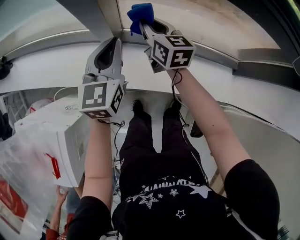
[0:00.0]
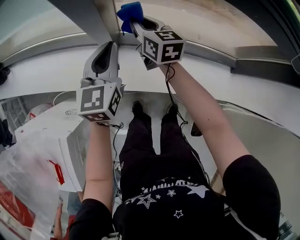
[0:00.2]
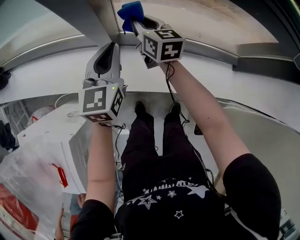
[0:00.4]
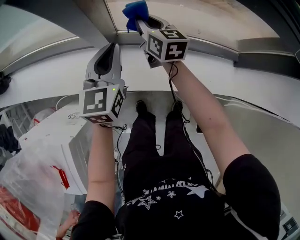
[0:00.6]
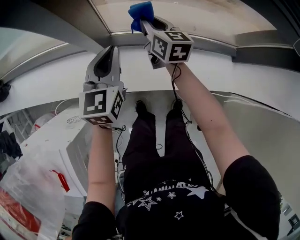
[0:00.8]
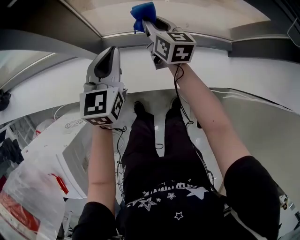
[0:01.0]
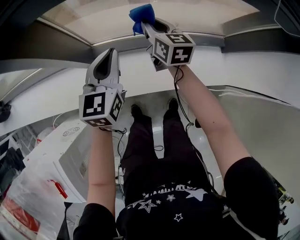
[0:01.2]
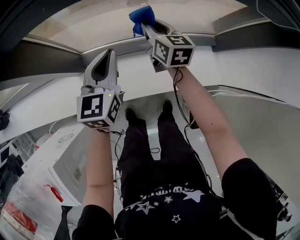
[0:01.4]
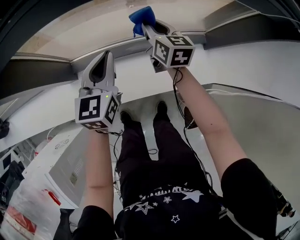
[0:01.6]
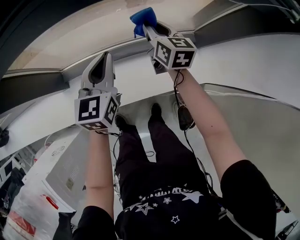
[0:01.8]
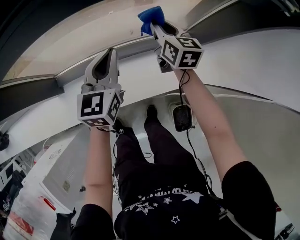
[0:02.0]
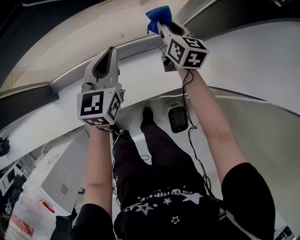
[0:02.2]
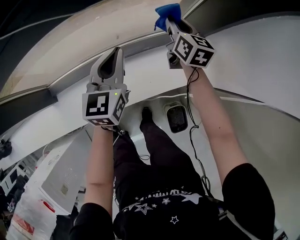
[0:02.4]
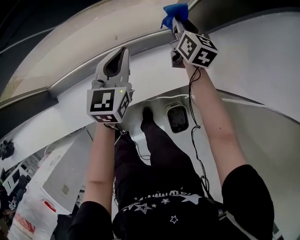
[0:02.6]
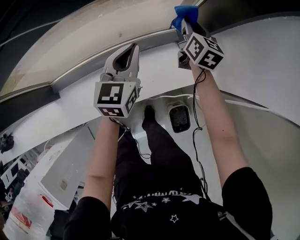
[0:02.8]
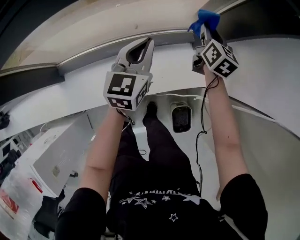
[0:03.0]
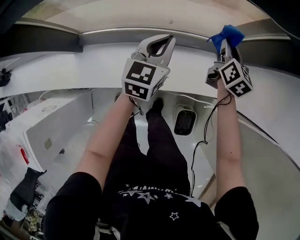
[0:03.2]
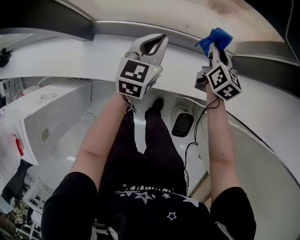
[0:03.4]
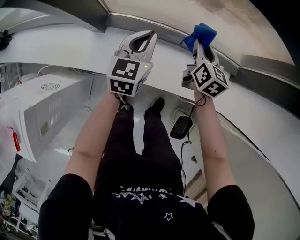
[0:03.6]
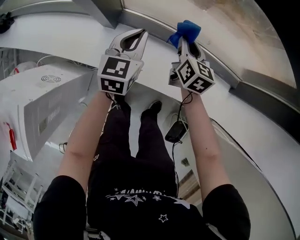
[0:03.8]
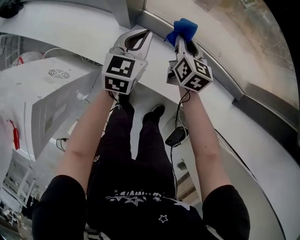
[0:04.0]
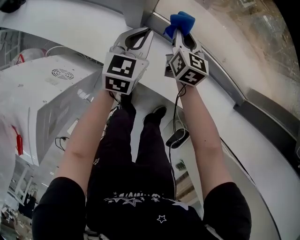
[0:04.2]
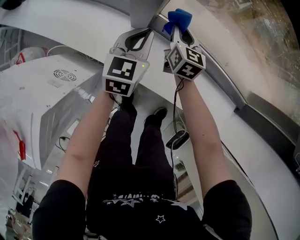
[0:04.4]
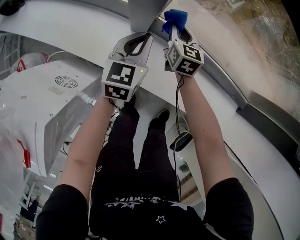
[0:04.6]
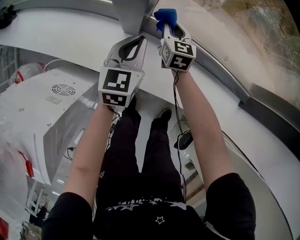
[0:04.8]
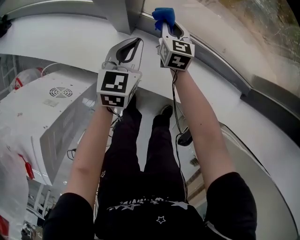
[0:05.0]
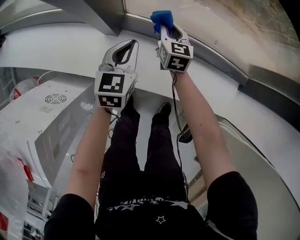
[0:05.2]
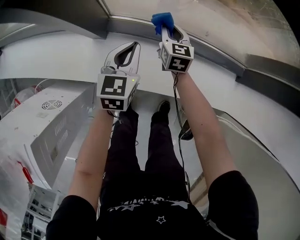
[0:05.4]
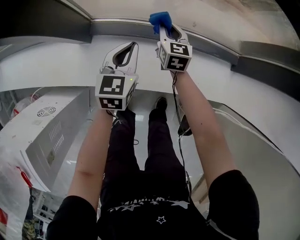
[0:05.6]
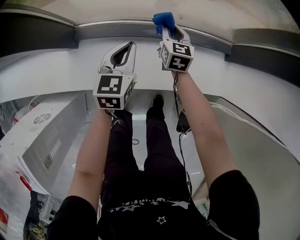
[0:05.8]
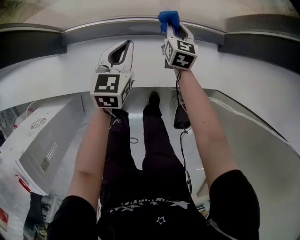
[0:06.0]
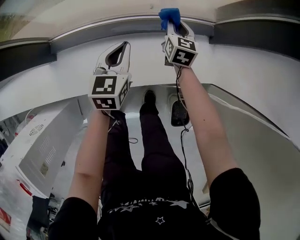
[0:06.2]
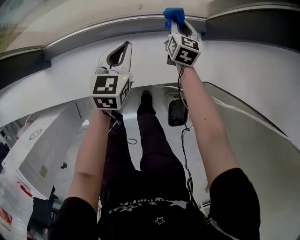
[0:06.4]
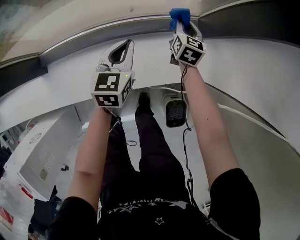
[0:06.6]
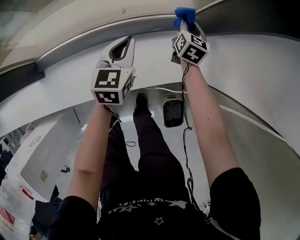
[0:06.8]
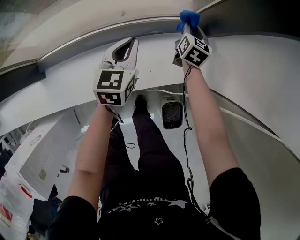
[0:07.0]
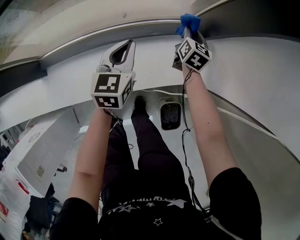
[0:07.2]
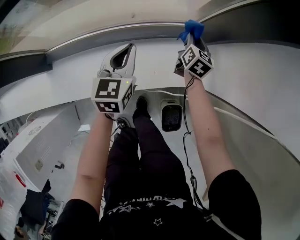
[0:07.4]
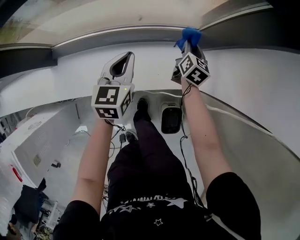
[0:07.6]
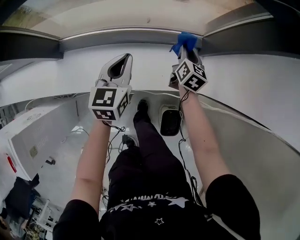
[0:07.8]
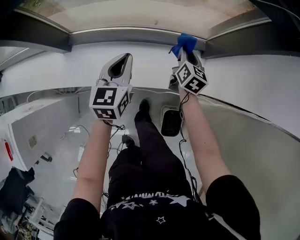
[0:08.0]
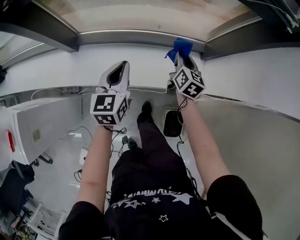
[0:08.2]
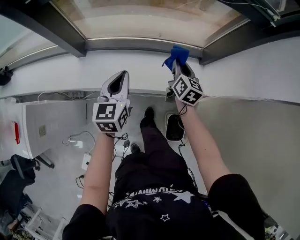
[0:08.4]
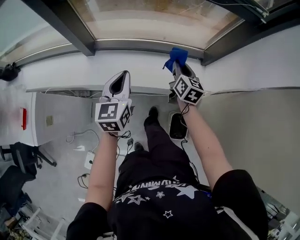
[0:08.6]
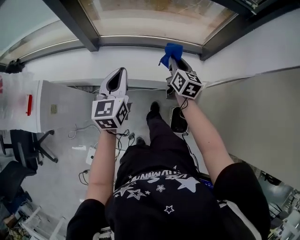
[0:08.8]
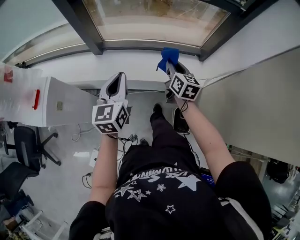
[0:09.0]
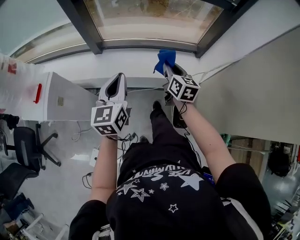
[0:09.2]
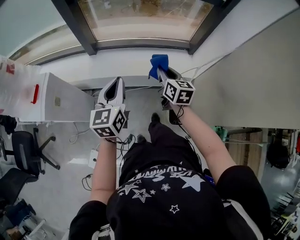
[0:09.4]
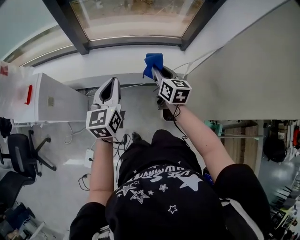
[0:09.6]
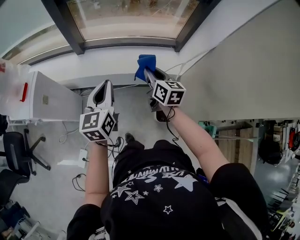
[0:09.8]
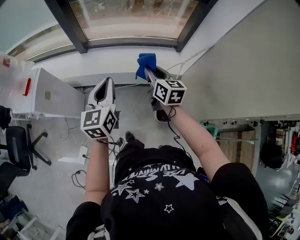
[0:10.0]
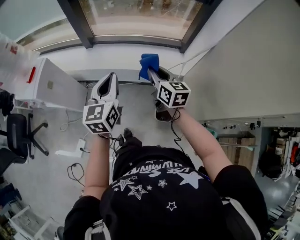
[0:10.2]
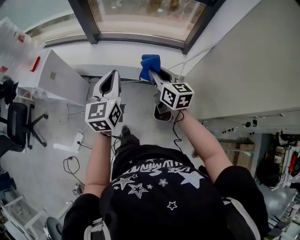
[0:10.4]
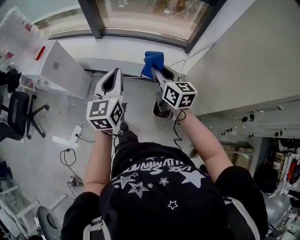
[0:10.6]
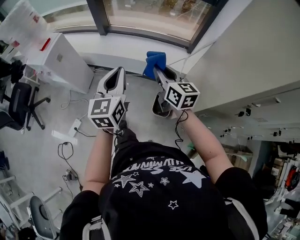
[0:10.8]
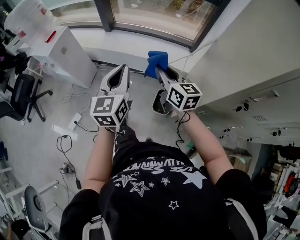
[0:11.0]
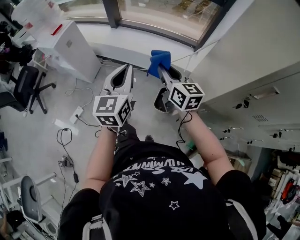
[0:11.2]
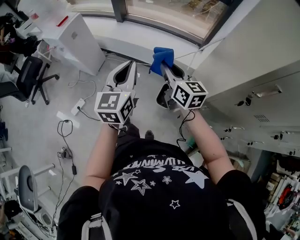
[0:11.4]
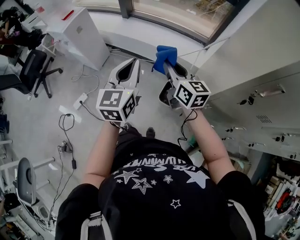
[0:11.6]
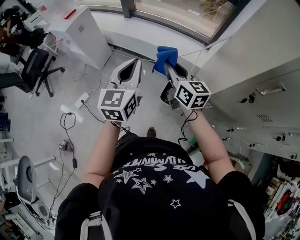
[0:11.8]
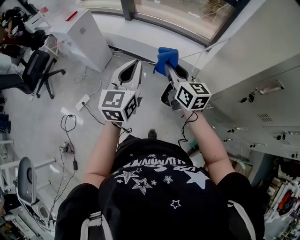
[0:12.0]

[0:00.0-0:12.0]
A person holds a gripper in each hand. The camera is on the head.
0:00.0 to 0:01.6: Both grippers move to the right, roughly 30 cm. The right gripper turns by approximately 20 degrees.
0:01.6 to 0:03.0: The grippers both shift to the right by roughly 30 cm. The right gripper swivels roughly 20 degrees.
0:03.0 to 0:04.4: The two grippers travel together, some 60 cm. The right gripper swivels roughly 40 degrees, while the left gripper changes its angle by approximately 30 degrees.
0:04.4 to 0:06.0: The left gripper moves roughly 35 cm, and changes its angle by approximately 20 degrees. The right gripper ends up about 40 cm from where it was, and swivels some 30 degrees.
0:06.0 to 0:07.6: The left gripper is displaced to the right and upward by roughly 15 cm; the right gripper heads to the right, covering approximately 25 cm, and turns by approximately 20 degrees.
0:07.6 to 0:09.0: The two grippers go about 50 cm backward, upward and to the left. The right gripper turns by approximately 30 degrees. Meanwhile the left gripper turns by about 20 degrees.
0:09.0 to 0:10.4: The right gripper moves backward, approximately 25 cm, and turns by approximately 20 degrees. Meanwhile the left gripper moves backward and to the right, approximately 20 cm.
0:10.4 to 0:12.0: Both grippers travel together backward, about 20 cm.

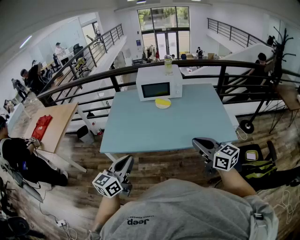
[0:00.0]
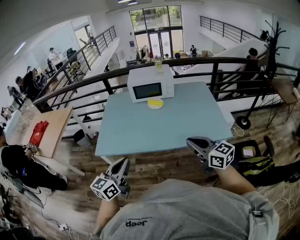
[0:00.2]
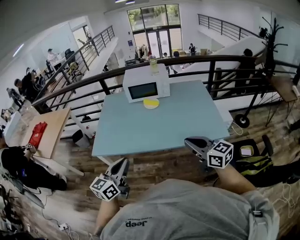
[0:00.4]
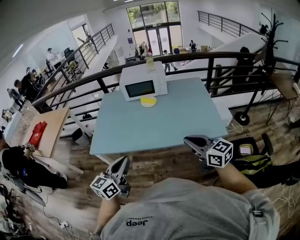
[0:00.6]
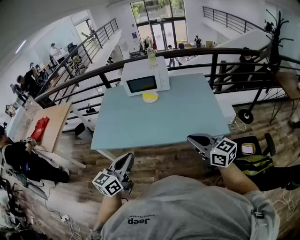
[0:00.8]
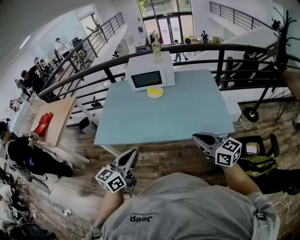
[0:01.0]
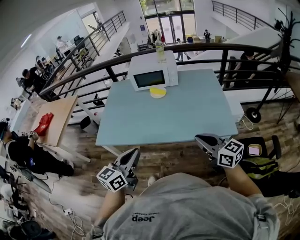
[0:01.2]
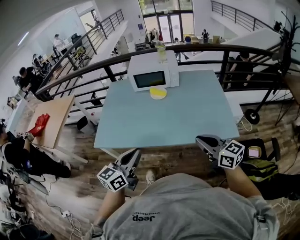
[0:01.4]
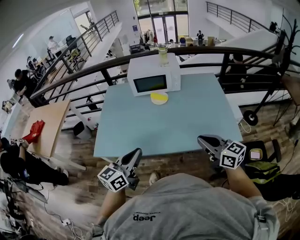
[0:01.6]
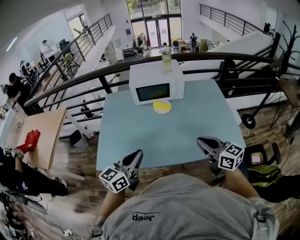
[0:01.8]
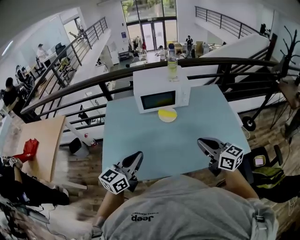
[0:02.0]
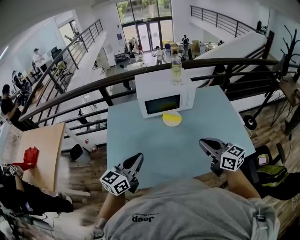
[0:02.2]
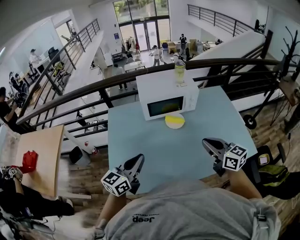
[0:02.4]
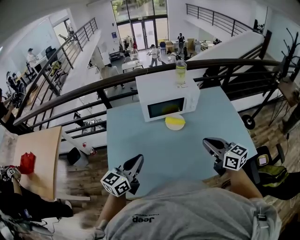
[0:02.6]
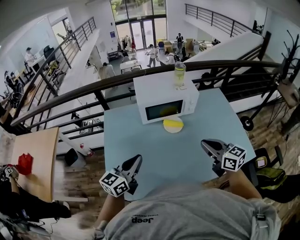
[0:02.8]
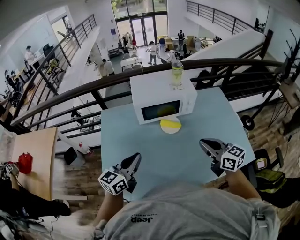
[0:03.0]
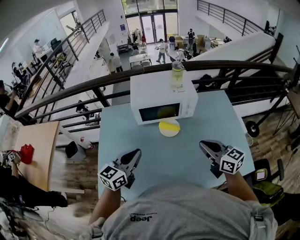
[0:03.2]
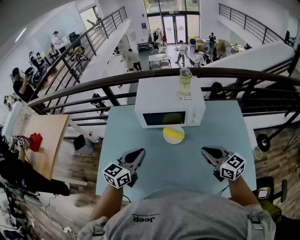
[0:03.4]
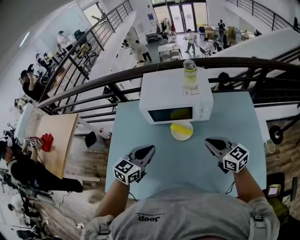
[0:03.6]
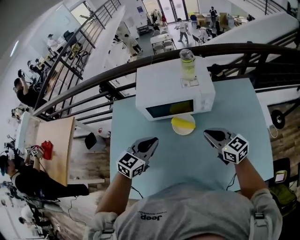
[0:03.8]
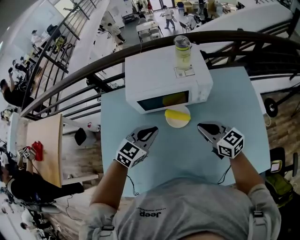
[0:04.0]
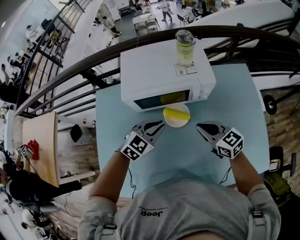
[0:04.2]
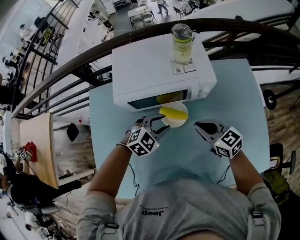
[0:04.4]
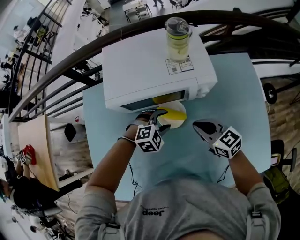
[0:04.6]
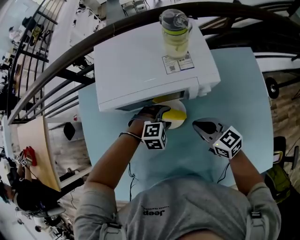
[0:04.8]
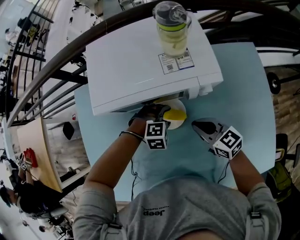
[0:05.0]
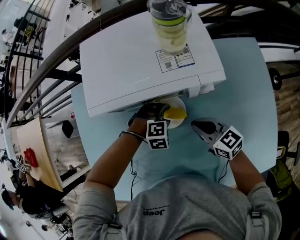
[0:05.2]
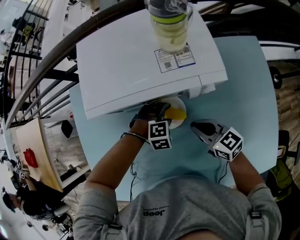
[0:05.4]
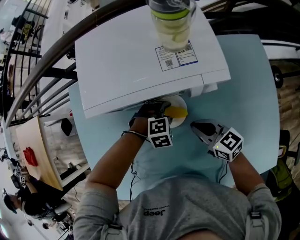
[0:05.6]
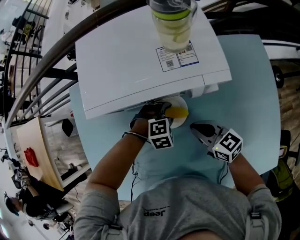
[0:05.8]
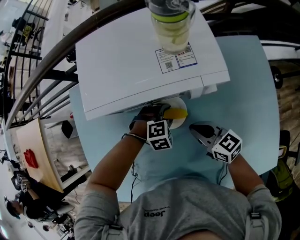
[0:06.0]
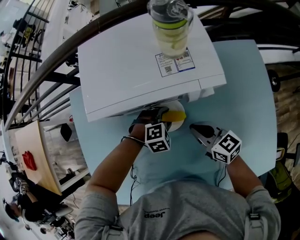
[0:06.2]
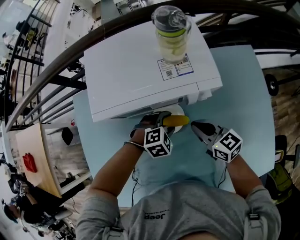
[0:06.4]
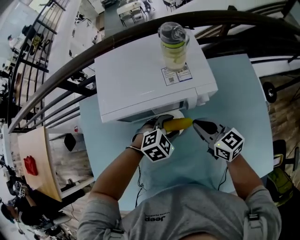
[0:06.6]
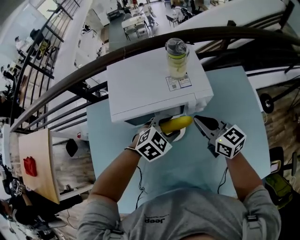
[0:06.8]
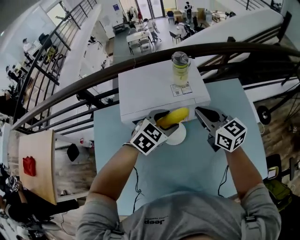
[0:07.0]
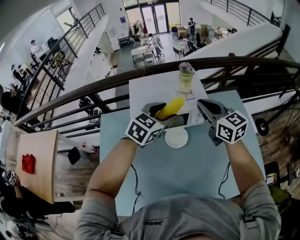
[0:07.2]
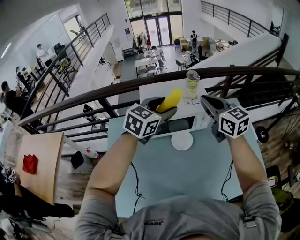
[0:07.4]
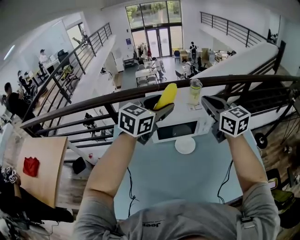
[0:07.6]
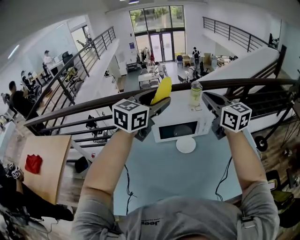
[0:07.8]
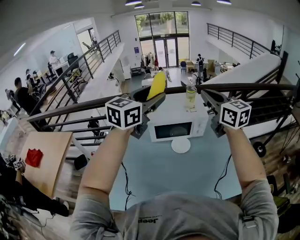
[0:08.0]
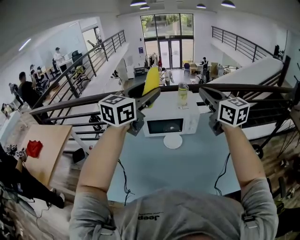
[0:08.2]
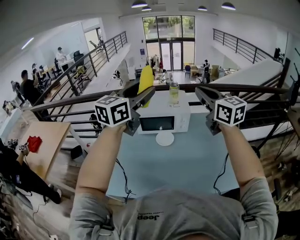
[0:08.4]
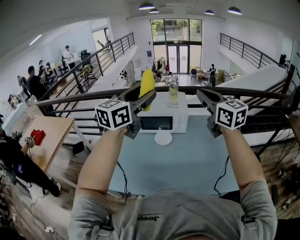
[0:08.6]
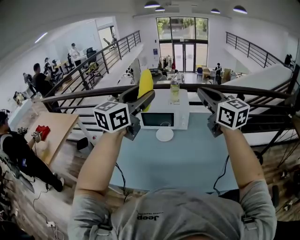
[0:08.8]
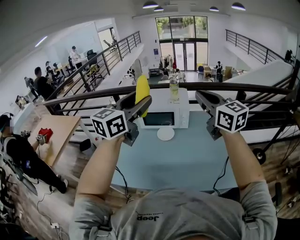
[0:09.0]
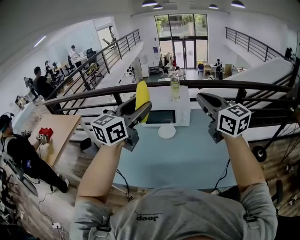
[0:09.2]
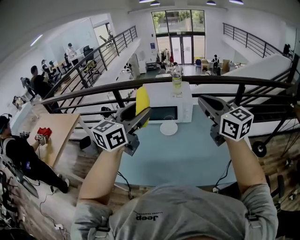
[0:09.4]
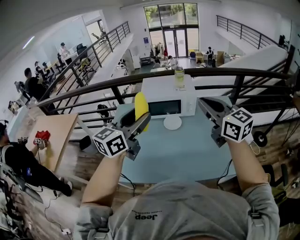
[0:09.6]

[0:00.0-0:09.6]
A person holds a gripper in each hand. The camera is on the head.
0:00.0 to 0:01.6: The two grippers go about 15 cm forward and to the right.
0:01.6 to 0:03.2: The left gripper moves forward and to the left, approximately 35 cm. The right gripper shifts some 30 cm forward.
0:03.2 to 0:04.8: The right gripper shifts approximately 30 cm downward and forward, while the left gripper goes about 40 cm downward, forward and to the right, angles its fingers downward, by roughly 50 degrees, and opens up.
0:04.8 to 0:06.4: The grippers move only a little.
0:06.4 to 0:08.0: The two grippers go approximately 50 cm upward. The right gripper swivels roughly 40 degrees; the left gripper tips its fingers upward by some 60 degrees.
0:08.0 to 0:09.6: The two grippers go about 20 cm backward.

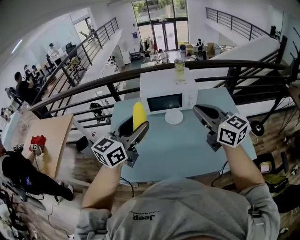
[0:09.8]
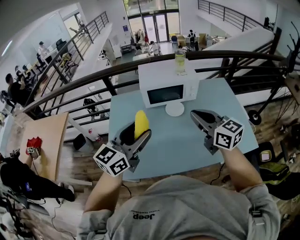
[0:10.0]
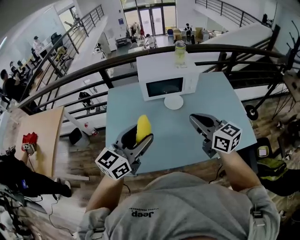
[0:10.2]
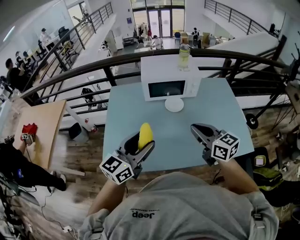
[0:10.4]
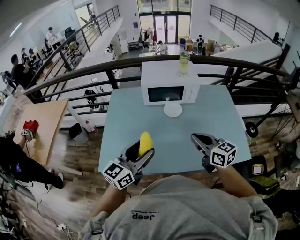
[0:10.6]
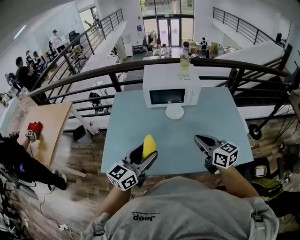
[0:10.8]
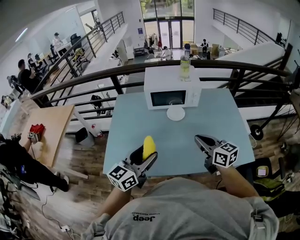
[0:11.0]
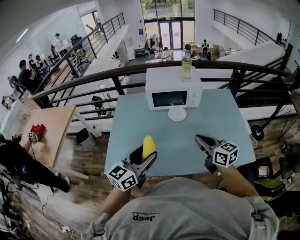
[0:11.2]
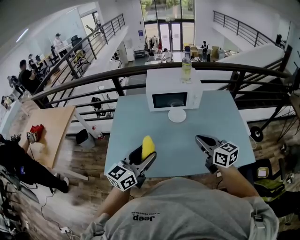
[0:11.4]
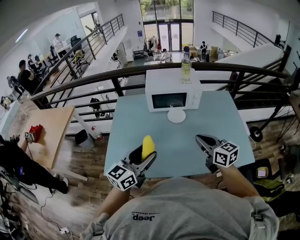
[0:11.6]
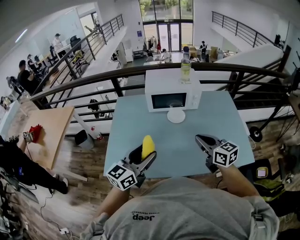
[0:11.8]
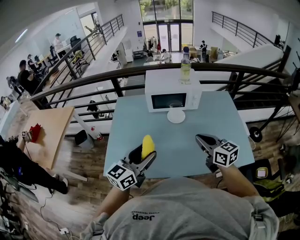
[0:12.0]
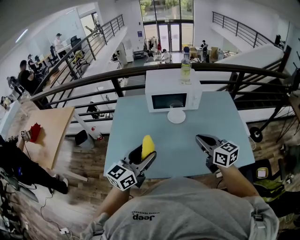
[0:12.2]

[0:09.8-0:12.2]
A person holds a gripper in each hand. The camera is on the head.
0:09.8 to 0:11.0: The right gripper shifts some 15 cm downward; the left gripper is displaced downward and backward by approximately 15 cm.
0:11.0 to 0:12.2: The grippers move only a little.
